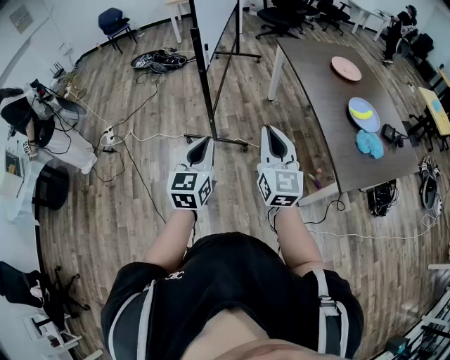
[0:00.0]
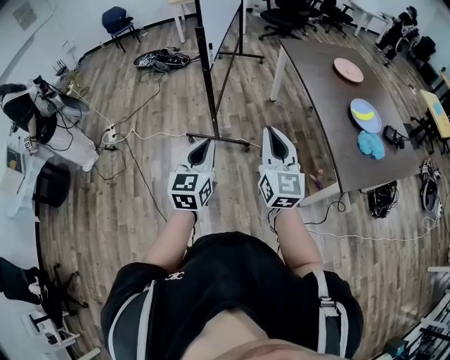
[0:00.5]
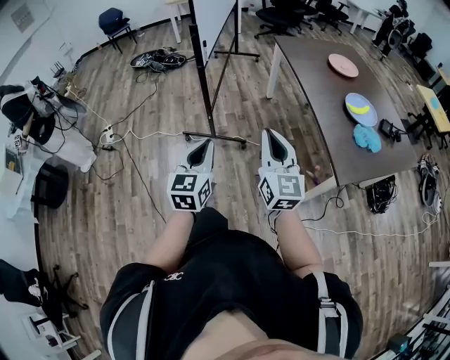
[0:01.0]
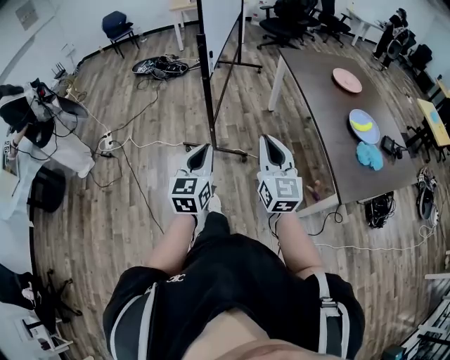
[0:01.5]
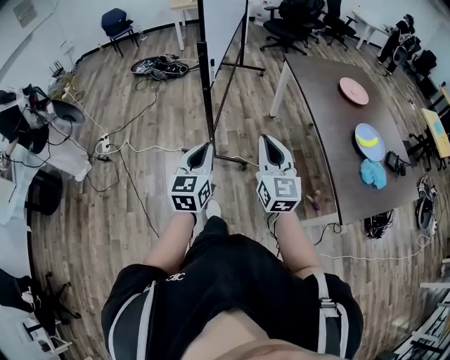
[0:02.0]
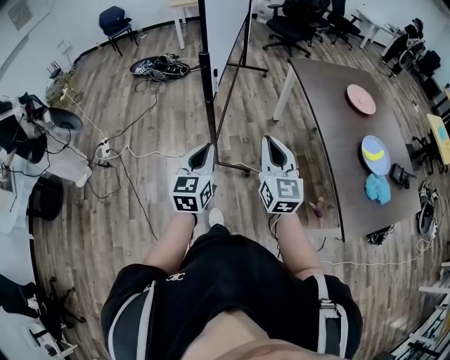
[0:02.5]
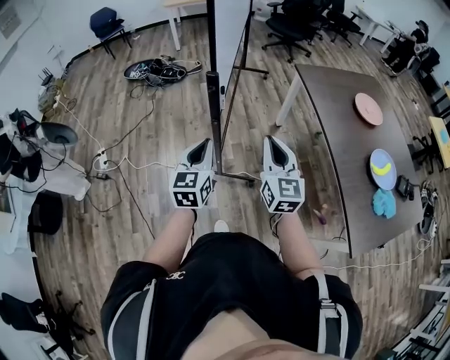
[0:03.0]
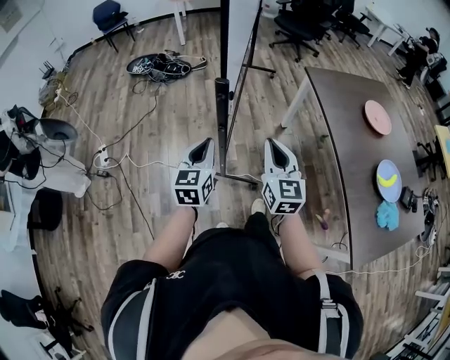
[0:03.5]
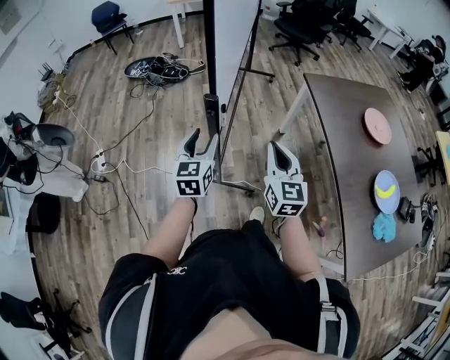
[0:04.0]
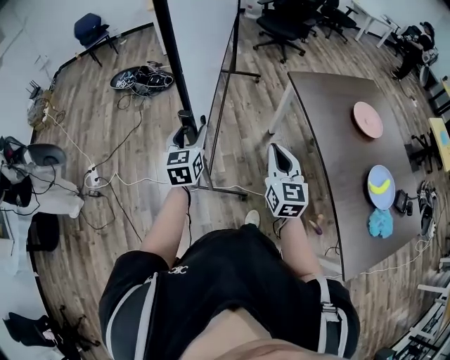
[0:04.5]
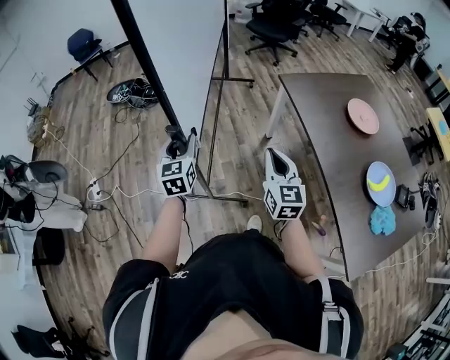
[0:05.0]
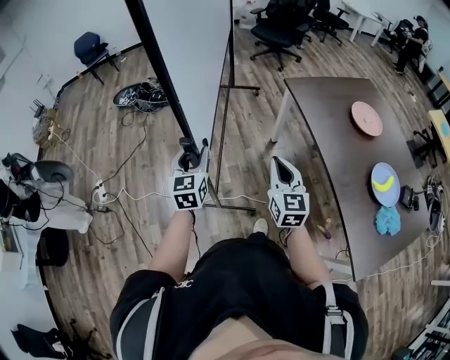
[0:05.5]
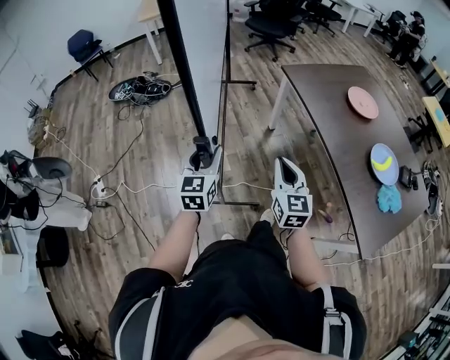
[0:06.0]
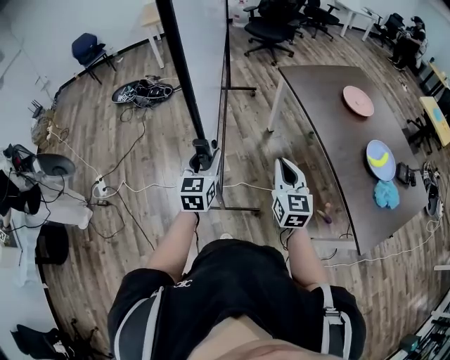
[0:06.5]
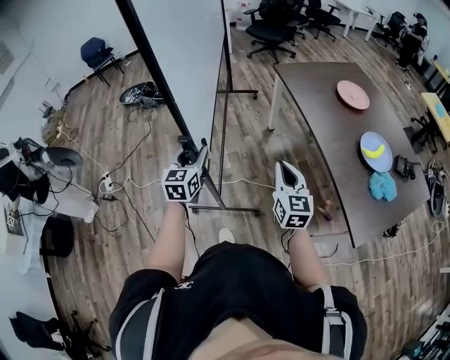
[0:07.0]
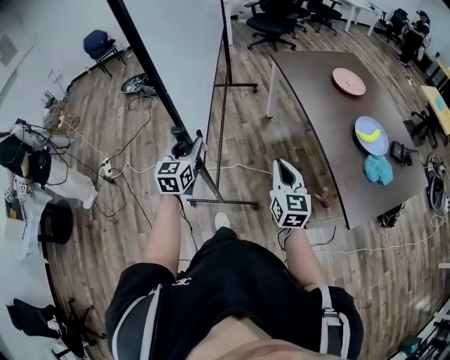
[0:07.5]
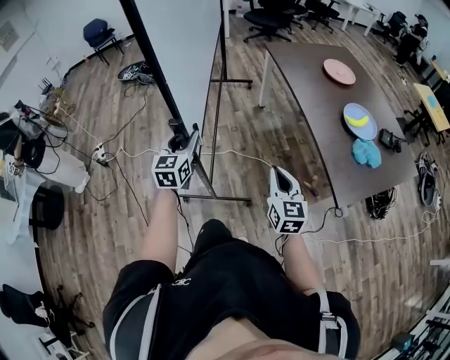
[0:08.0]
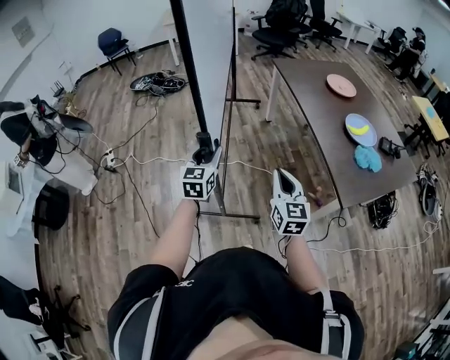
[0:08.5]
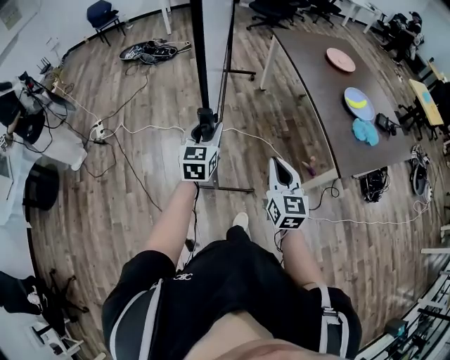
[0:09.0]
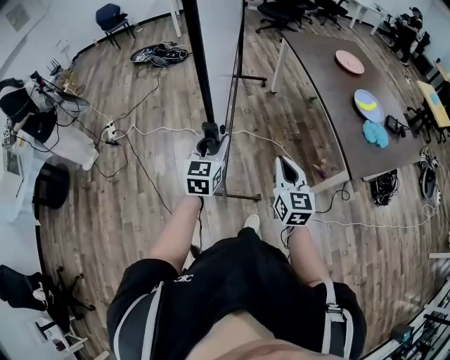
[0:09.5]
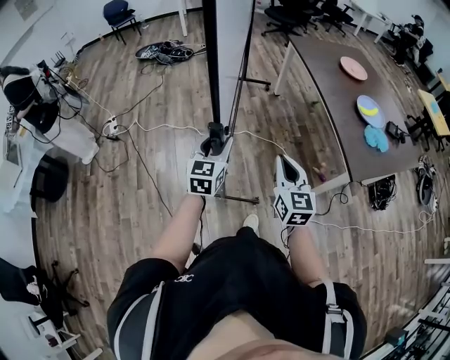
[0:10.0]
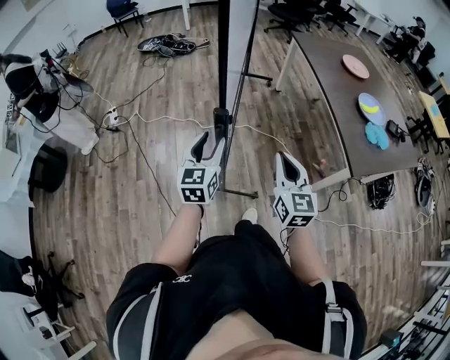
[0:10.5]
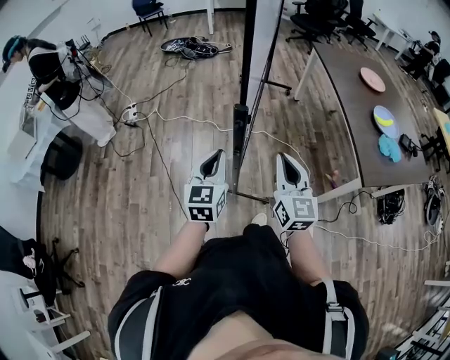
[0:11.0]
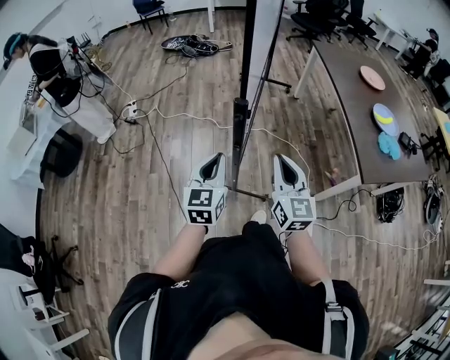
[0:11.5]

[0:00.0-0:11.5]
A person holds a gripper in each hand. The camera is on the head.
0:00.0 to 0:02.0: Both grippers travel together forward, approximately 10 cm.
0:02.0 to 0:04.0: The two grippers go some 35 cm forward. The left gripper opens.
0:04.0 to 0:06.0: The left gripper goes forward and returns, roughly 10 cm each way, while the right gripper goes about 5 cm backward.
0:06.0 to 0:07.5: The left gripper heads backward, covering roughly 15 cm, while the right gripper travels backward and to the right by some 20 cm.
0:07.5 to 0:09.5: Both grippers move backward, roughly 25 cm.
0:09.5 to 0:11.5: The right gripper moves to the left and backward, some 15 cm. Meanwhile the left gripper goes about 20 cm backward and to the left, and closes its fingers.

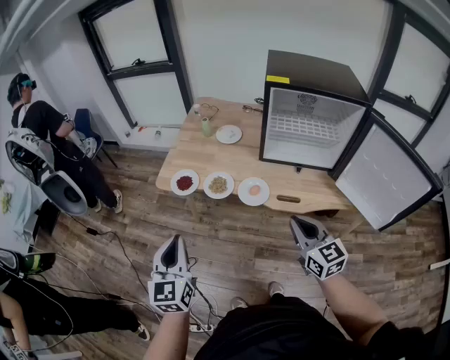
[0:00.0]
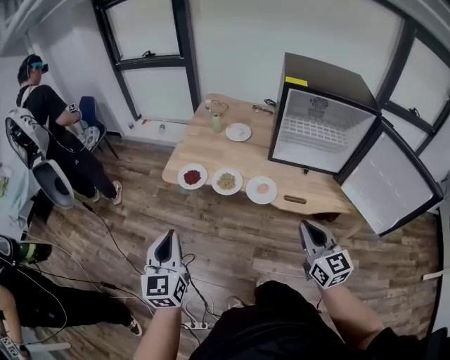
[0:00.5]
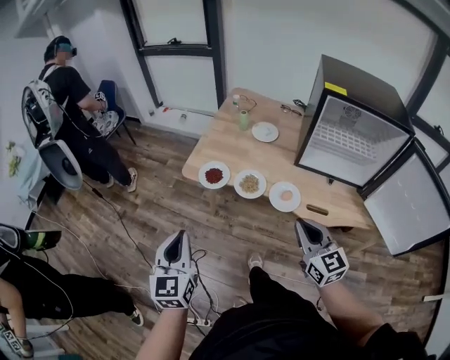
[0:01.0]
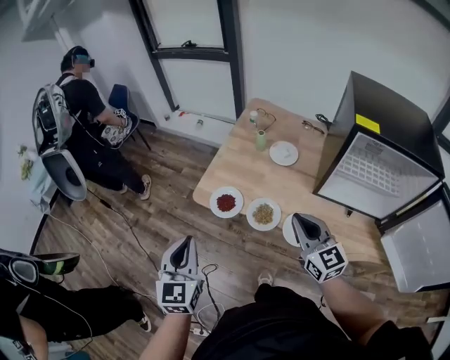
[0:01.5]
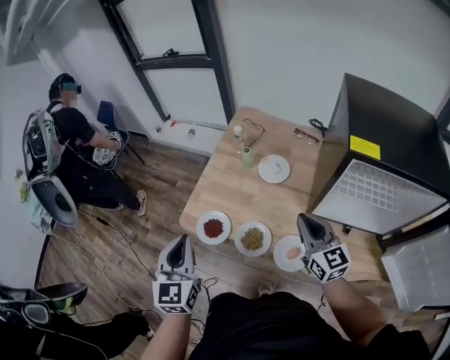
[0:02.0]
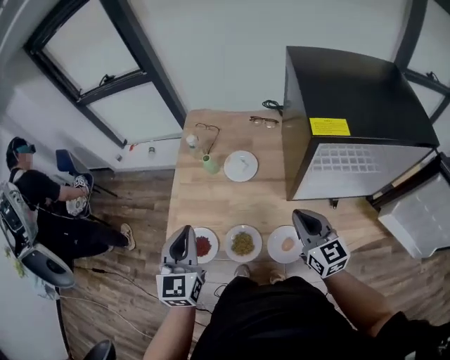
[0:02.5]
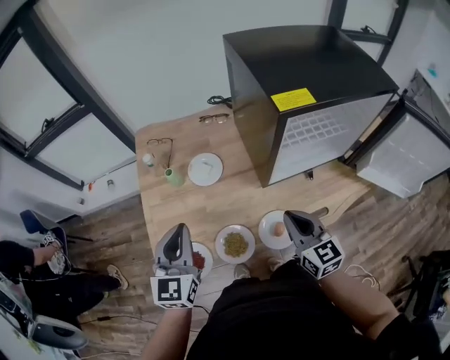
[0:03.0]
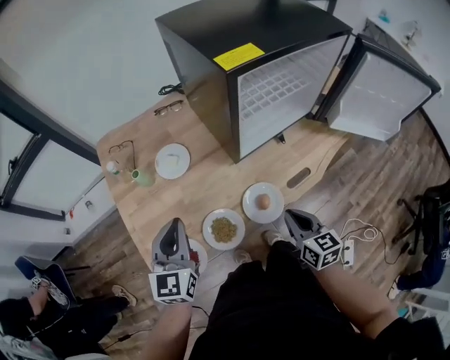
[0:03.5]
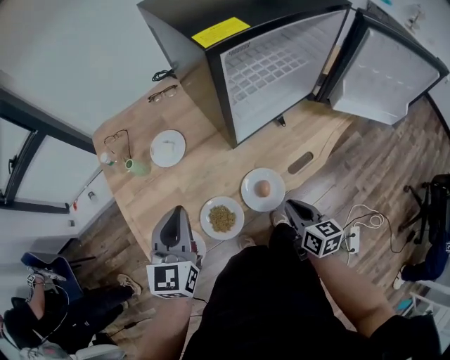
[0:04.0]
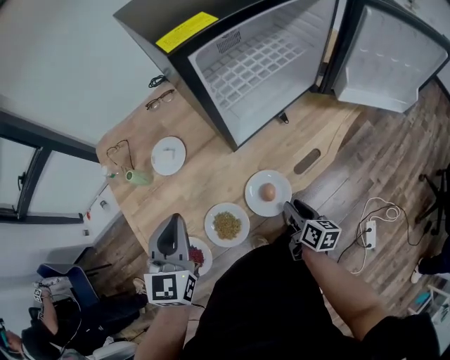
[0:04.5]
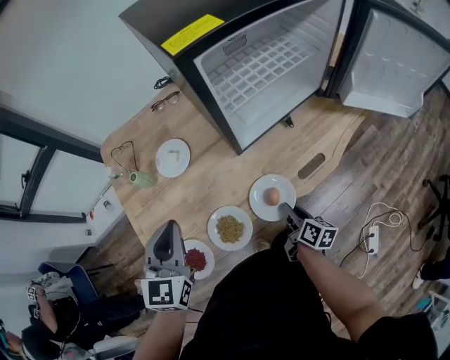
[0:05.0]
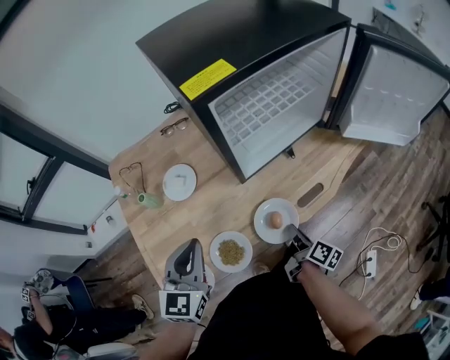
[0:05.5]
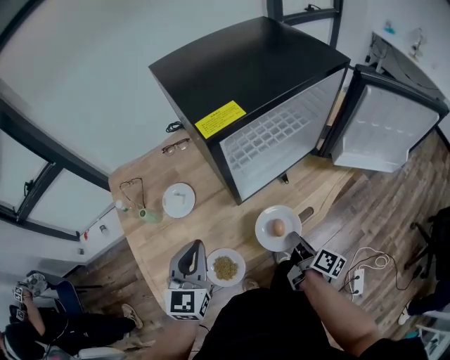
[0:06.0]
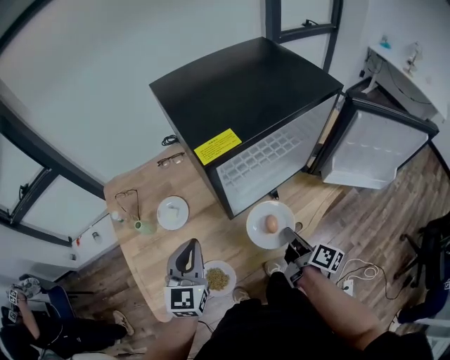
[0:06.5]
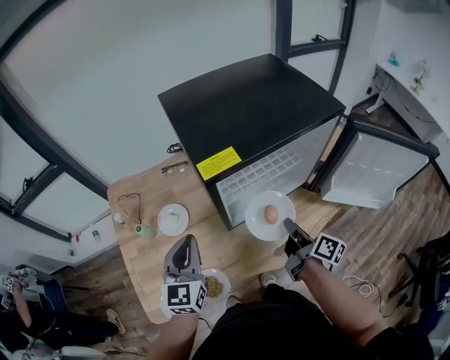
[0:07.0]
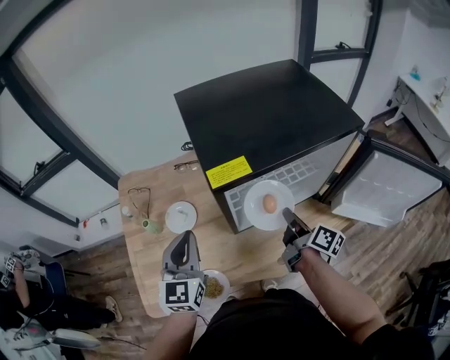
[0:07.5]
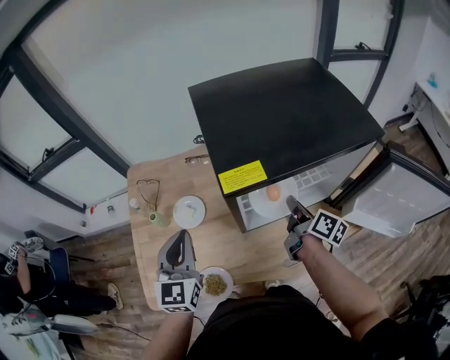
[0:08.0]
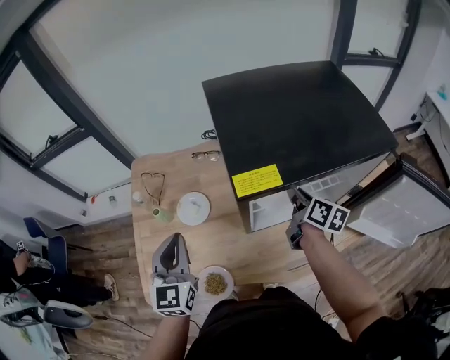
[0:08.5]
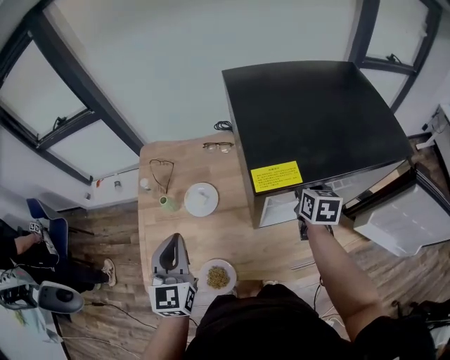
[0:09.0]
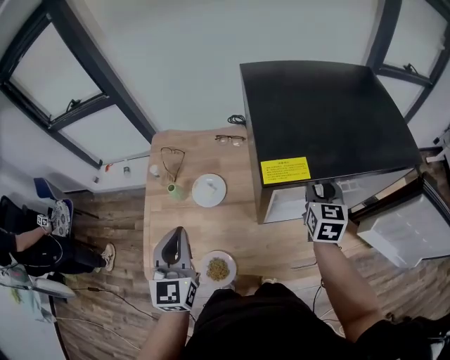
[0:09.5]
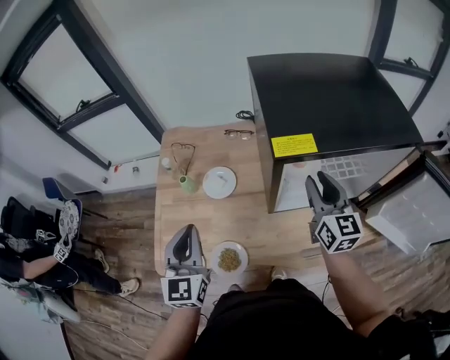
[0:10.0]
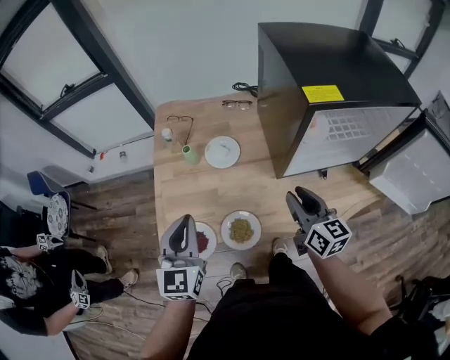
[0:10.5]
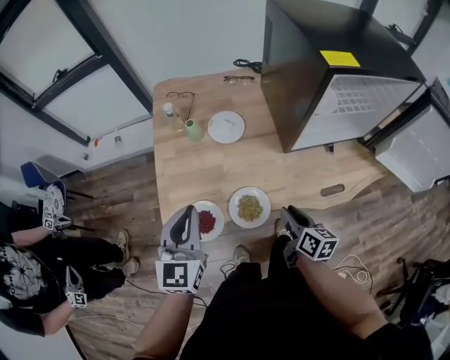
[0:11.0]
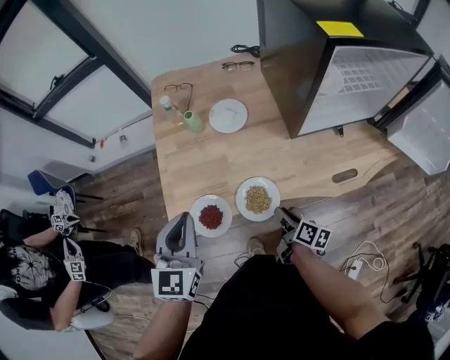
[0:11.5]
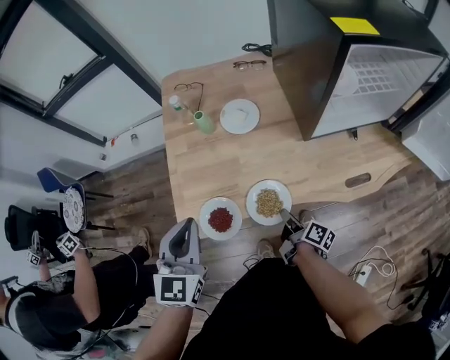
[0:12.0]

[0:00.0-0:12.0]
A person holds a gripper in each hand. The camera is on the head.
0:00.0 to 0:02.0: Both grippers move forward, approximately 30 cm.
0:02.0 to 0:04.0: The right gripper moves downward, approximately 20 cm, and swivels approximately 60 degrees. Meanwhile the left gripper ends up about 20 cm from where it was, and changes its angle by approximately 60 degrees.
0:04.0 to 0:06.0: The right gripper moves forward and to the right, approximately 10 cm, goes downward and returns, some 10 cm each way, rolls clockwise, seen from behind, by approximately 40 degrees, and opens, then closes again, while the left gripper ends up approximately 5 cm from where it was.
0:06.0 to 0:08.0: The left gripper goes roughly 10 cm forward and upward, and swivels roughly 20 degrees. Meanwhile the right gripper heads forward and upward, covering approximately 30 cm.
0:08.0 to 0:10.0: The left gripper goes some 10 cm backward and to the left. The right gripper goes roughly 10 cm upward and to the left, rolls counterclockwise, seen from behind, by roughly 50 degrees, and opens up.
0:10.0 to 0:12.0: The right gripper heads downward, to the left and backward, covering approximately 50 cm, twists about 70 degrees clockwise, seen from behind, and closes up. The left gripper moves to the left, backward and downward, some 20 cm.

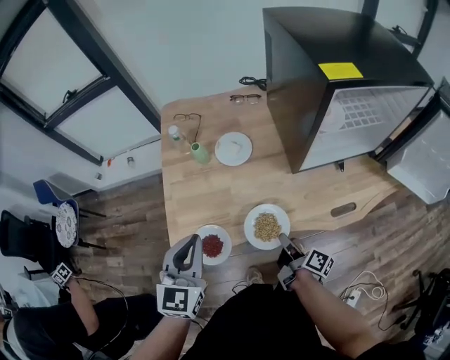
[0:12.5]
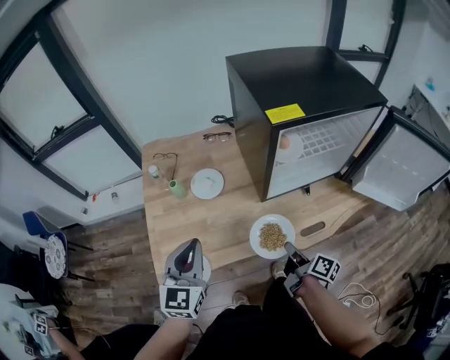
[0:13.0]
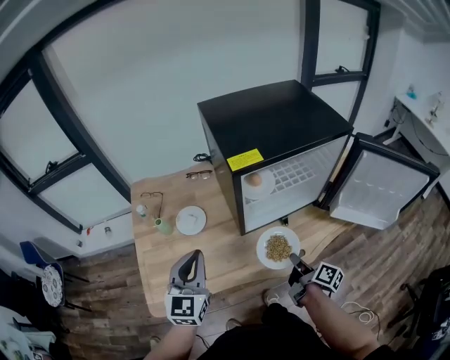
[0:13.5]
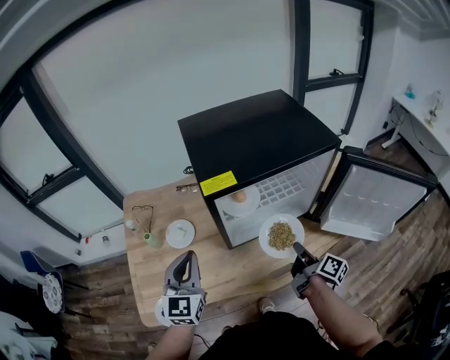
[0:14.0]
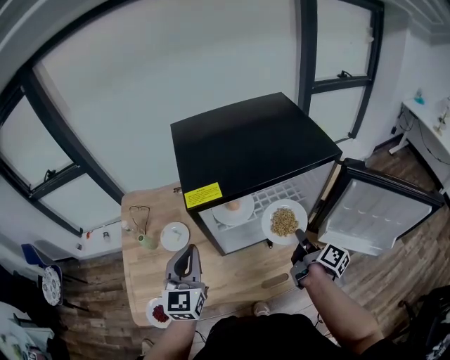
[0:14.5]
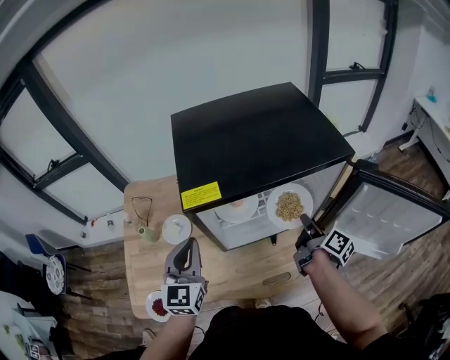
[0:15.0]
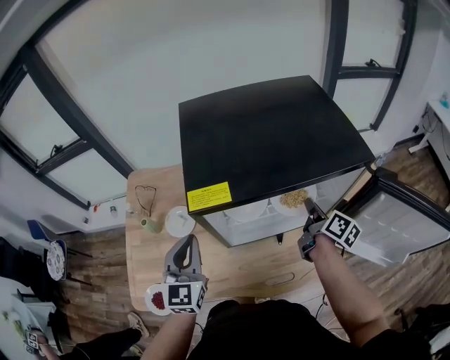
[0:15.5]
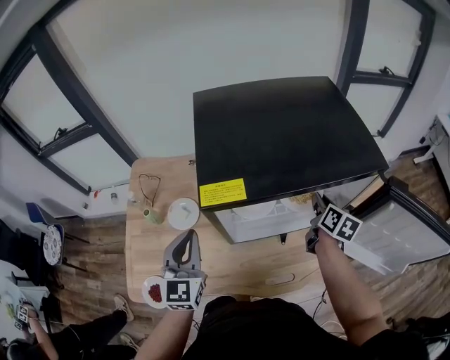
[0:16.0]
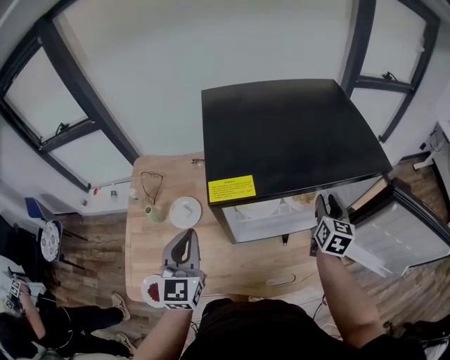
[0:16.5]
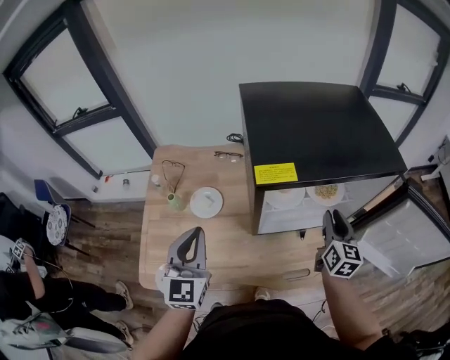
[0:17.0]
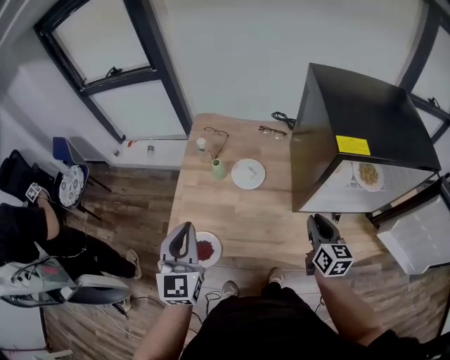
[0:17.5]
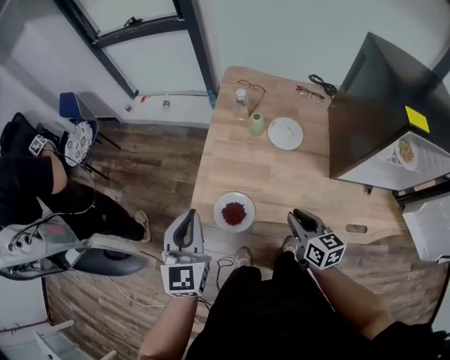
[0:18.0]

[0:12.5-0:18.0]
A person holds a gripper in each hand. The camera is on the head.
0:12.5 to 0:14.5: The right gripper travels to the right, upward and forward by approximately 40 cm, and rotates approximately 20 degrees. Meanwhile the left gripper is displaced to the right, forward and upward by roughly 30 cm.
0:14.5 to 0:16.0: The right gripper is displaced forward by about 15 cm, and swivels approximately 40 degrees.
0:16.0 to 0:18.0: The pair of grippers is taken approximately 50 cm. The left gripper changes its angle by approximately 20 degrees; the right gripper swivels some 50 degrees.
